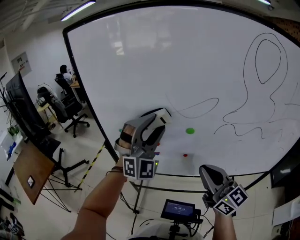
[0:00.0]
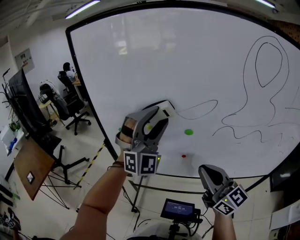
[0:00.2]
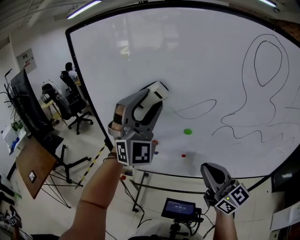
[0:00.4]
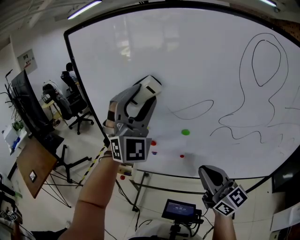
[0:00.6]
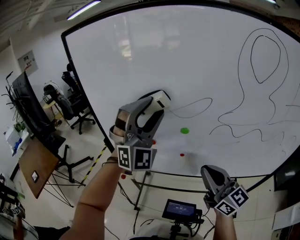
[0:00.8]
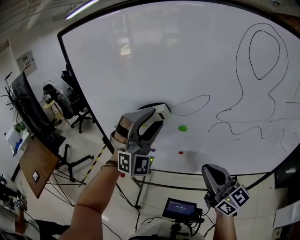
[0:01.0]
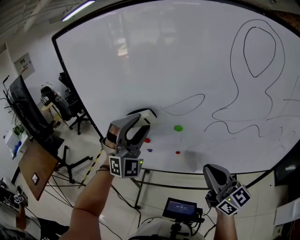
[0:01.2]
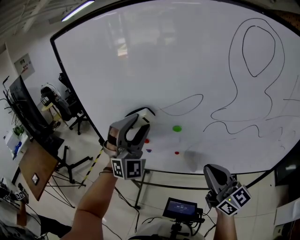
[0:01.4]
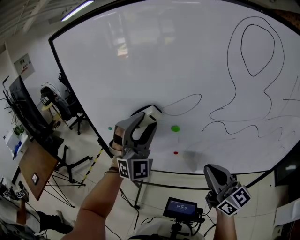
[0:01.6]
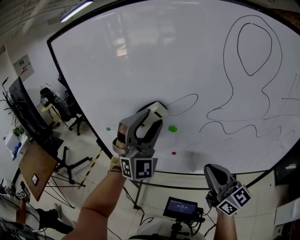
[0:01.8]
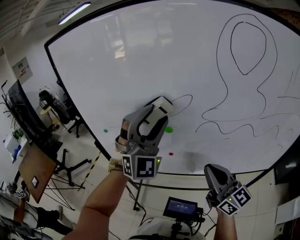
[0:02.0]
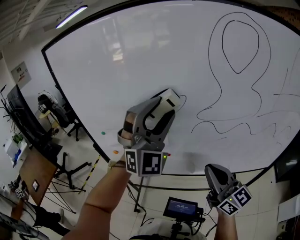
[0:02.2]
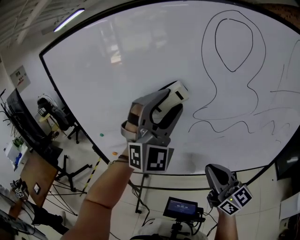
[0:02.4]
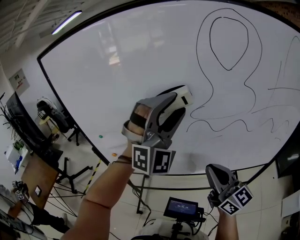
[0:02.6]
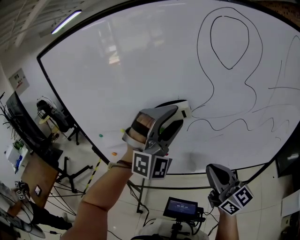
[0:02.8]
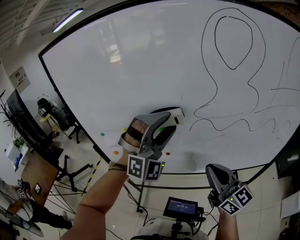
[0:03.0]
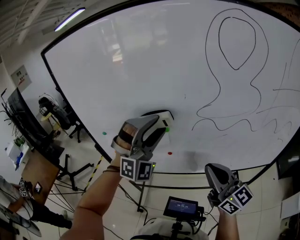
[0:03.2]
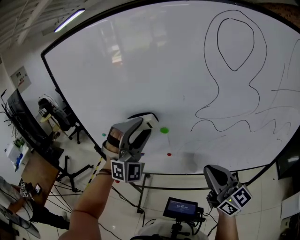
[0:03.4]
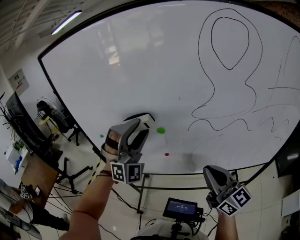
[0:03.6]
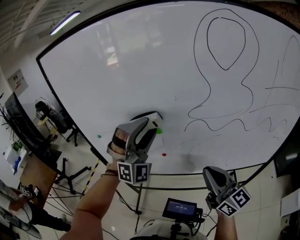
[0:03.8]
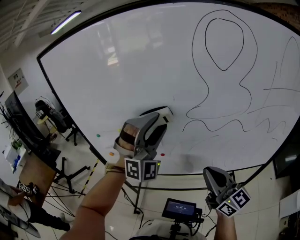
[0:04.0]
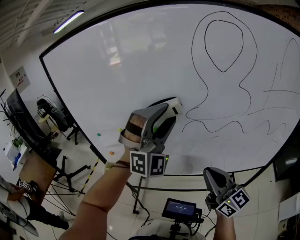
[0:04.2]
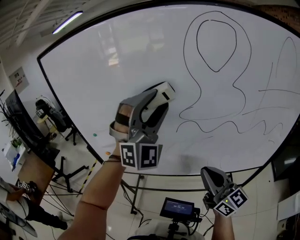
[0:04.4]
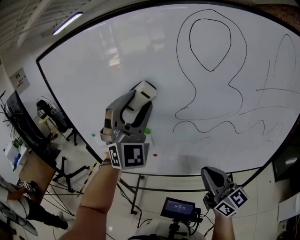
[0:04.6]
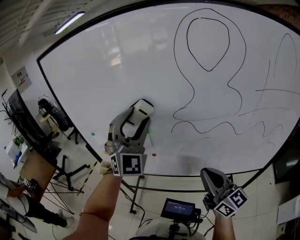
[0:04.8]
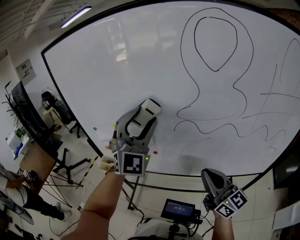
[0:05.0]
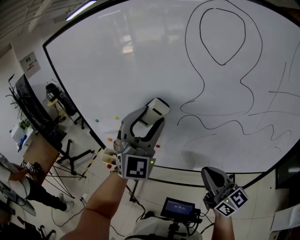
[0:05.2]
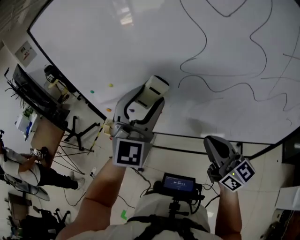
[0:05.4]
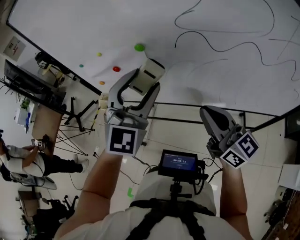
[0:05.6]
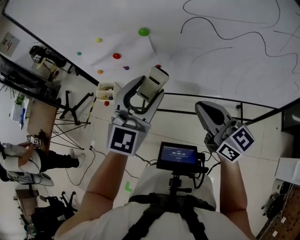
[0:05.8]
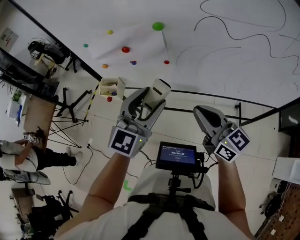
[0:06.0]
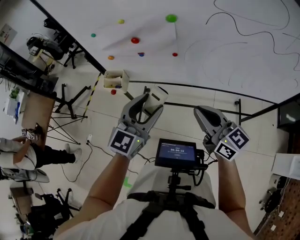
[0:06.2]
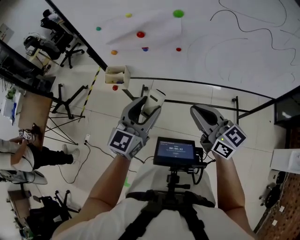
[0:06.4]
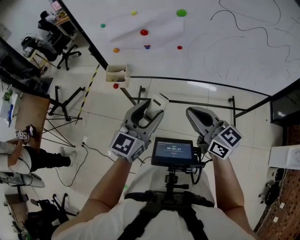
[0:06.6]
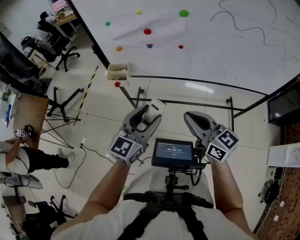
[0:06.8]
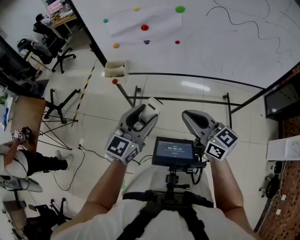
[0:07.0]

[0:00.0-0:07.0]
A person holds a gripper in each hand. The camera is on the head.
0:00.0 to 0:01.4: The right gripper shifts by approximately 10 cm.
0:01.4 to 0:02.8: The right gripper ends up roughly 5 cm from where it was.
0:04.2 to 0:05.6: The right gripper heads downward, covering approximately 10 cm.
0:05.6 to 0:07.0: The right gripper changes place by about 30 cm.

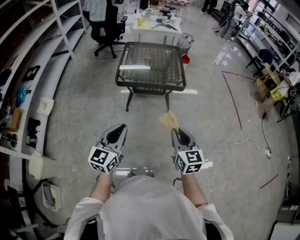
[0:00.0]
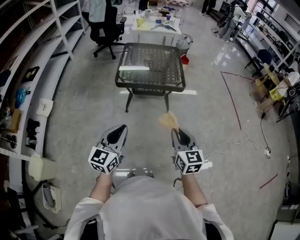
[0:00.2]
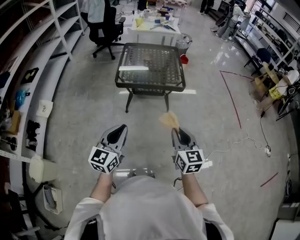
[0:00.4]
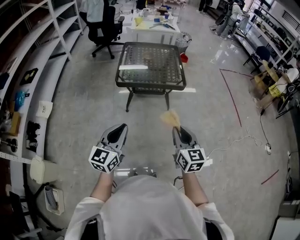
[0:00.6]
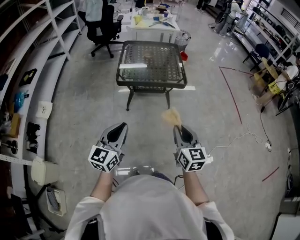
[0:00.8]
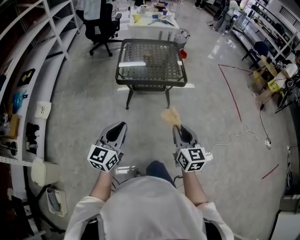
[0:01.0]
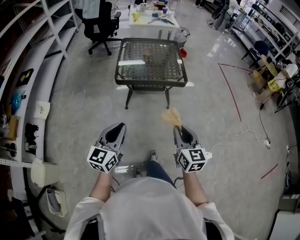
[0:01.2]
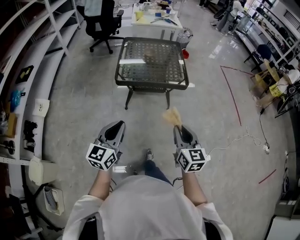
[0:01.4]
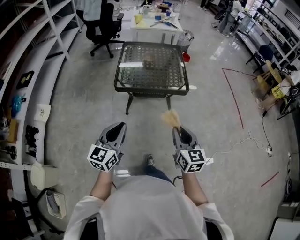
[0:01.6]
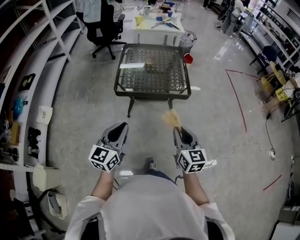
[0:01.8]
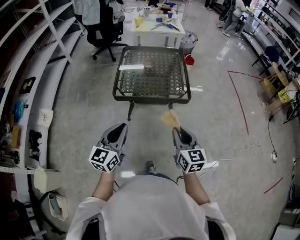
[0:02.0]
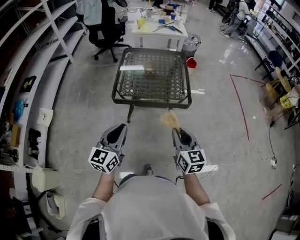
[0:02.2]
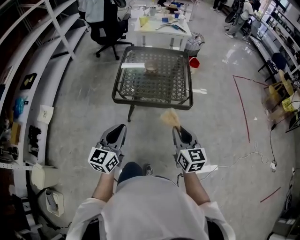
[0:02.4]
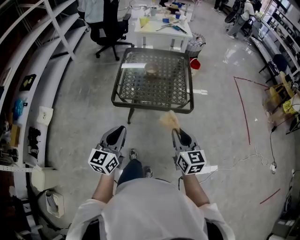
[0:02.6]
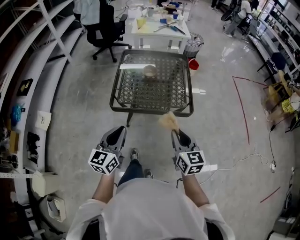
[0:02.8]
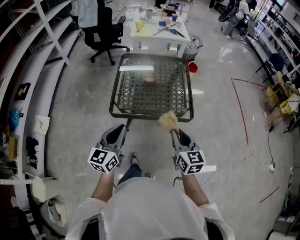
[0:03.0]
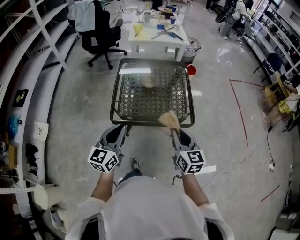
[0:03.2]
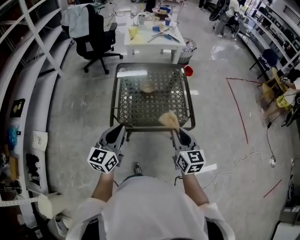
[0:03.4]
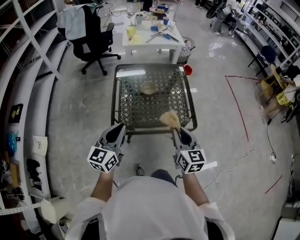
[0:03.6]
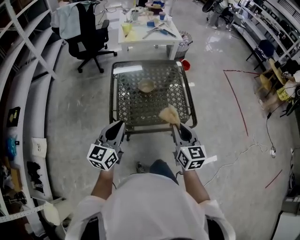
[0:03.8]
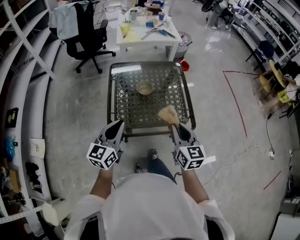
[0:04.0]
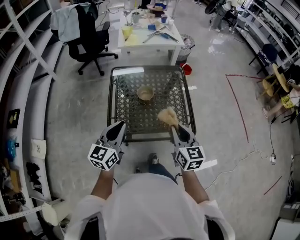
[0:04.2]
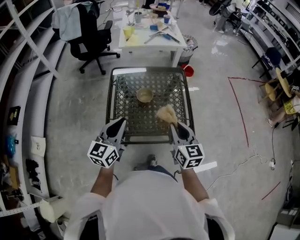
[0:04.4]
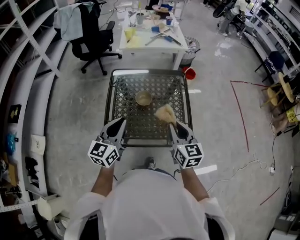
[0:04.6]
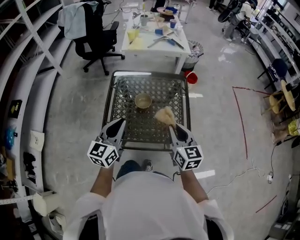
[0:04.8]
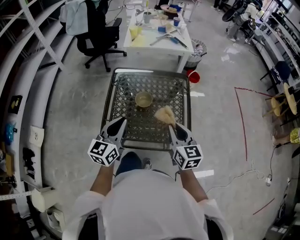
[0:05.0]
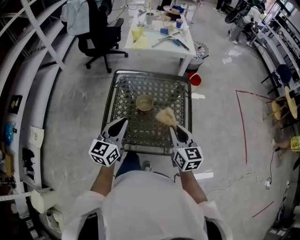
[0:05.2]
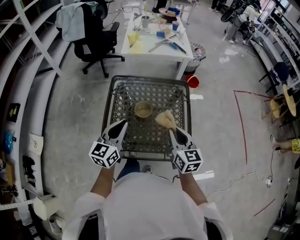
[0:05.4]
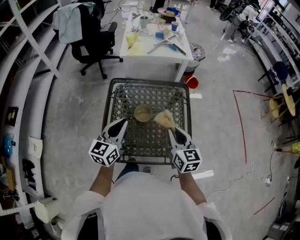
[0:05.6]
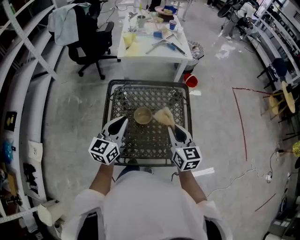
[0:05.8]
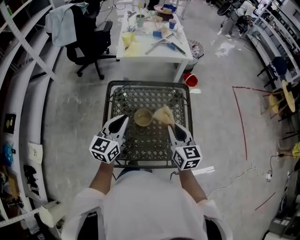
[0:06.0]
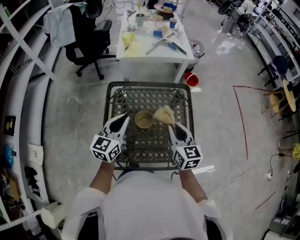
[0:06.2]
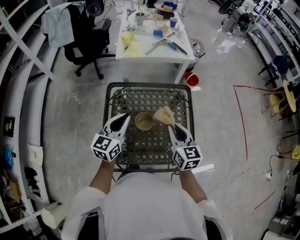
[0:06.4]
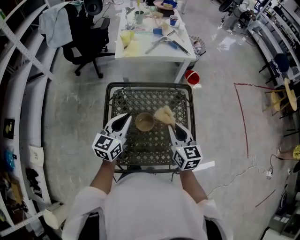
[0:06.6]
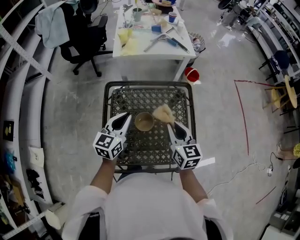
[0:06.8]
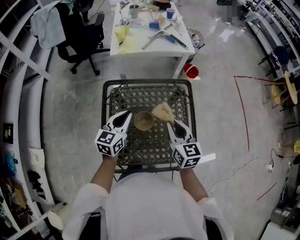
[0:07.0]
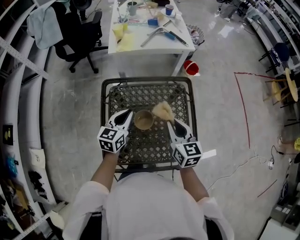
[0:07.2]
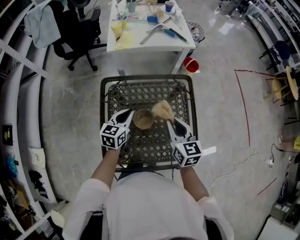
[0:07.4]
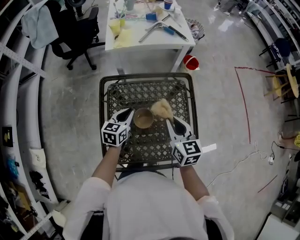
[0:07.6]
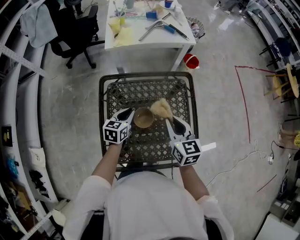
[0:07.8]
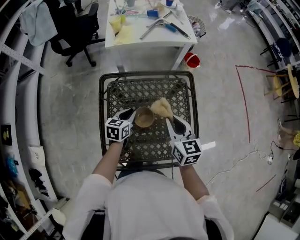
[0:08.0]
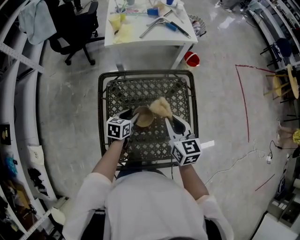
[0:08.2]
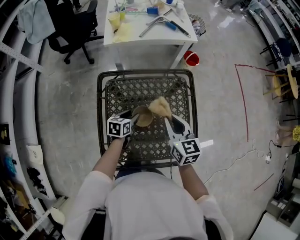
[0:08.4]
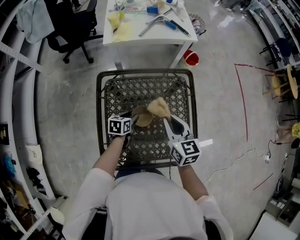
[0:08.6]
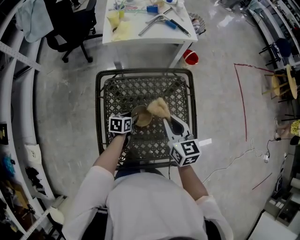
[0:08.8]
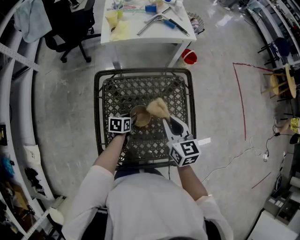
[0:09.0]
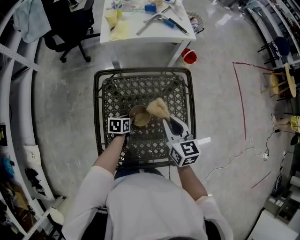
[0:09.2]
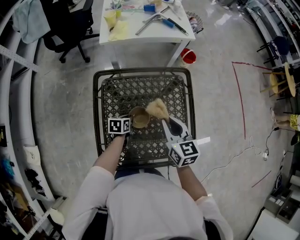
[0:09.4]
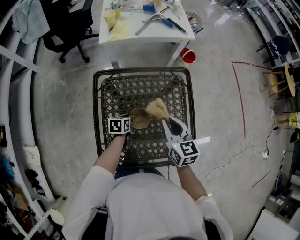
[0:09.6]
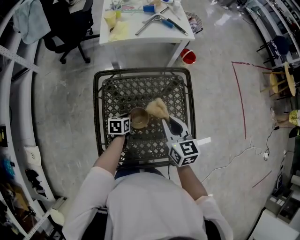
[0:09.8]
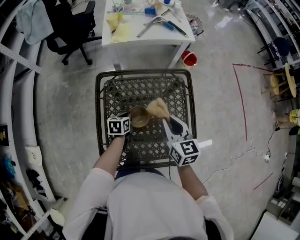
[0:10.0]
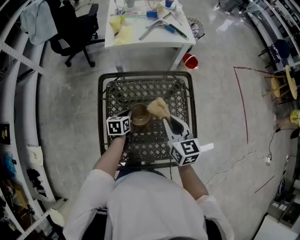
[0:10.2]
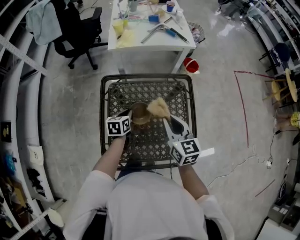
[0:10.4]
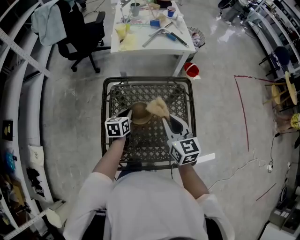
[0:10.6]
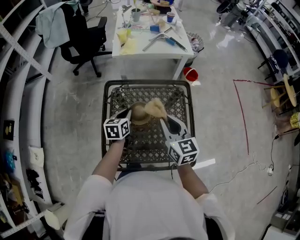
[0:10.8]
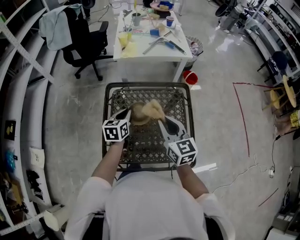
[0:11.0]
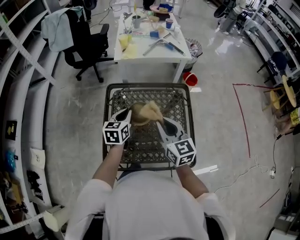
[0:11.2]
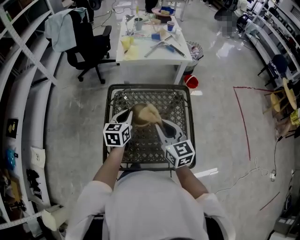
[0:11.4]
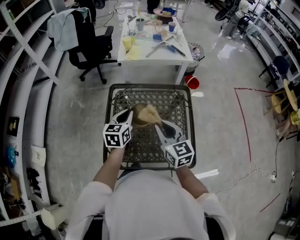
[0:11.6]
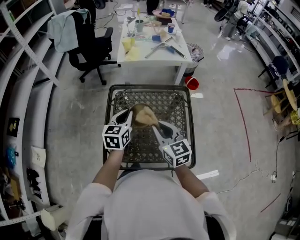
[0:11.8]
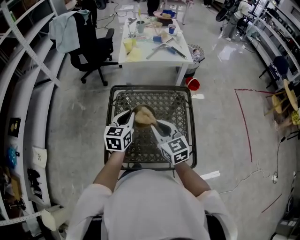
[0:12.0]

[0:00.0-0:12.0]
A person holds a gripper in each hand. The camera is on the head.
0:00.0 to 0:01.6: The two grippers go roughly 10 cm forward.
0:01.6 to 0:03.0: Both grippers travel together forward, roughly 25 cm.
0:03.0 to 0:04.4: The two grippers go roughly 20 cm forward.
0:04.4 to 0:06.0: Both grippers move forward, some 20 cm.
0:06.0 to 0:07.6: The right gripper is displaced forward by about 10 cm; the left gripper travels downward and forward by about 20 cm, and changes its angle by about 20 degrees.
0:07.6 to 0:09.0: The left gripper shifts some 15 cm downward, rotates about 30 degrees, and opens up.
0:09.0 to 0:10.4: The left gripper travels upward by roughly 10 cm, and closes.
0:10.4 to 0:12.0: The right gripper is displaced backward and to the left by some 10 cm, while the left gripper shifts about 20 cm upward and backward, and turns by roughly 30 degrees.

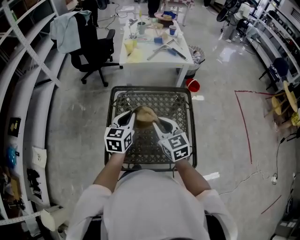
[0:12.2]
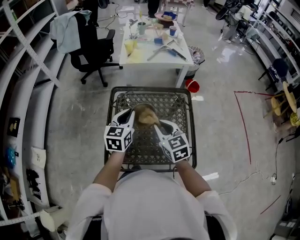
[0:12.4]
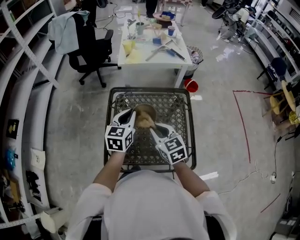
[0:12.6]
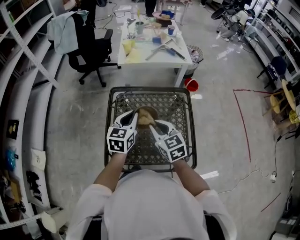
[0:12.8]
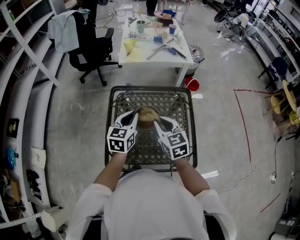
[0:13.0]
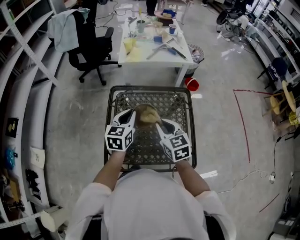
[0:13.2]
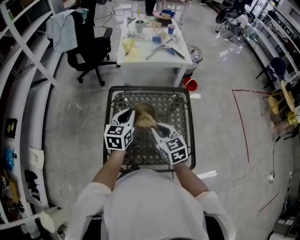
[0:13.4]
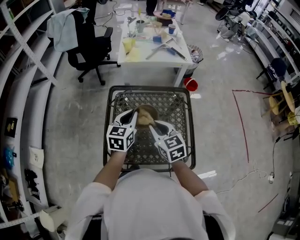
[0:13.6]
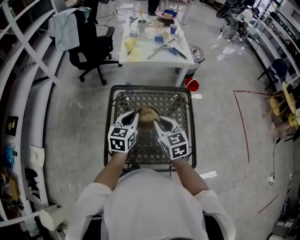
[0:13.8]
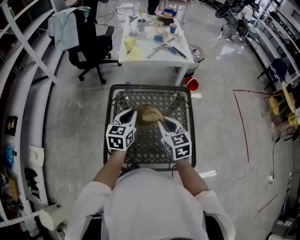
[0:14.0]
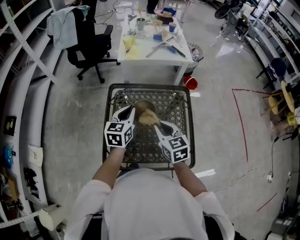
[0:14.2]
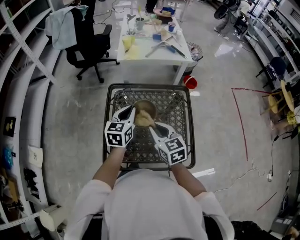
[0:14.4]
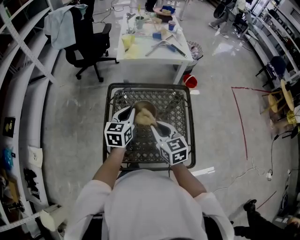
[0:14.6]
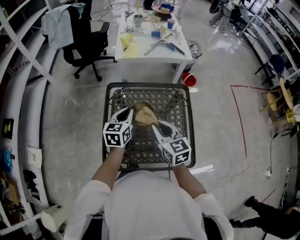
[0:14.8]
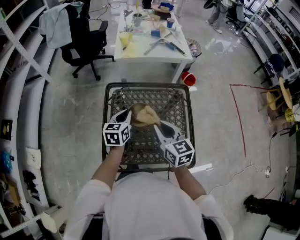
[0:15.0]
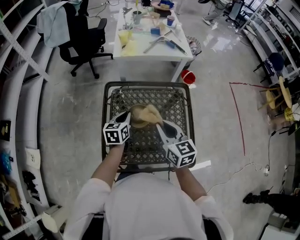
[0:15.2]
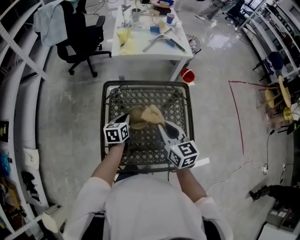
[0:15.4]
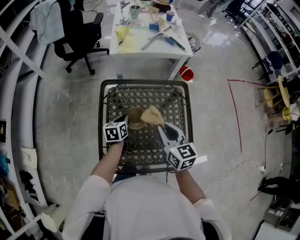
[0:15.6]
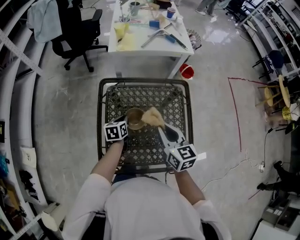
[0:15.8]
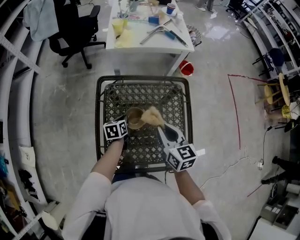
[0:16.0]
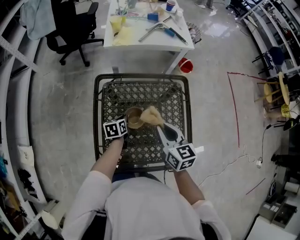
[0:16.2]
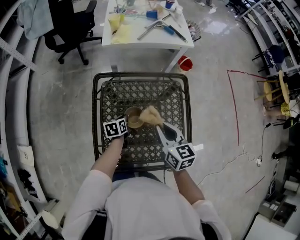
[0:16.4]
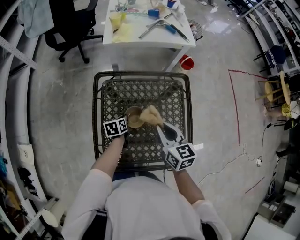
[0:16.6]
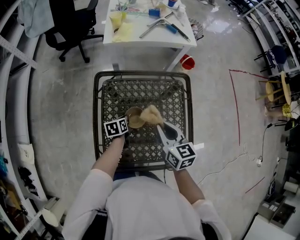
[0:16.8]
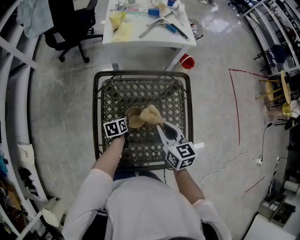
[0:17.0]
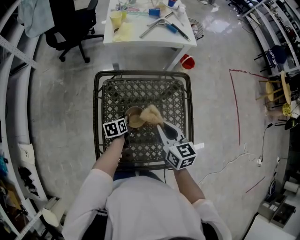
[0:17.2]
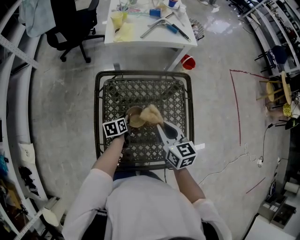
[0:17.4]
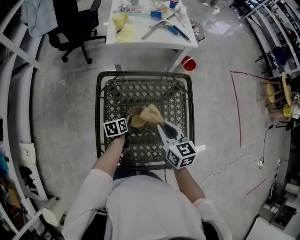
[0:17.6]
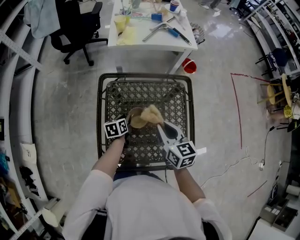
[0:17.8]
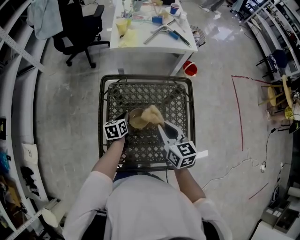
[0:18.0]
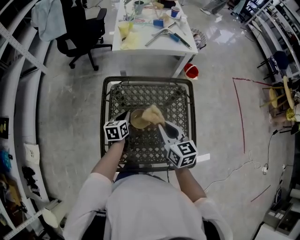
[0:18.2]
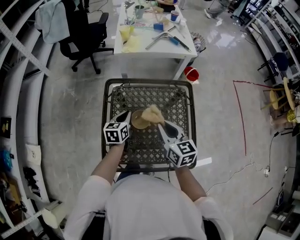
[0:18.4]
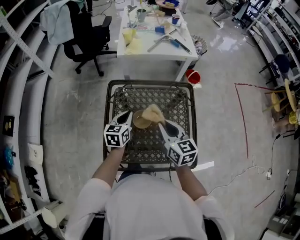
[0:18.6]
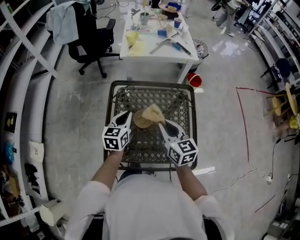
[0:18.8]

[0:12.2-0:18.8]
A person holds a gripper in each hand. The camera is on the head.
0:12.2 to 0:13.8: The grippers make only small movements.
0:13.8 to 0:15.4: The left gripper shifts approximately 15 cm downward, and turns by approximately 20 degrees.
0:15.4 to 0:17.2: The right gripper goes approximately 5 cm downward. The left gripper travels downward by roughly 15 cm, and changes its angle by roughly 20 degrees.
0:17.2 to 0:18.8: The right gripper heads upward, covering roughly 5 cm; the left gripper heads upward, covering approximately 20 cm, and swivels approximately 40 degrees.
